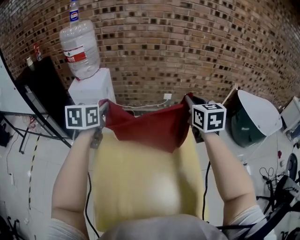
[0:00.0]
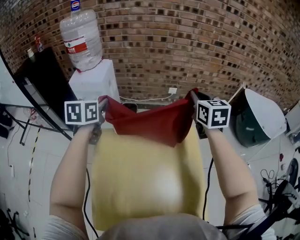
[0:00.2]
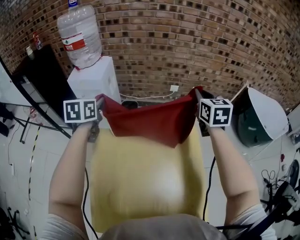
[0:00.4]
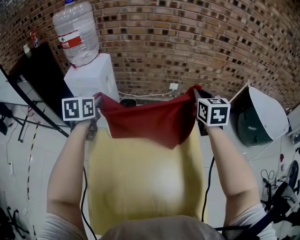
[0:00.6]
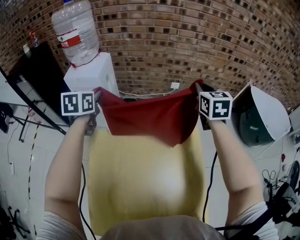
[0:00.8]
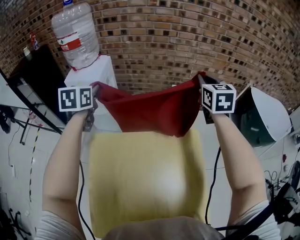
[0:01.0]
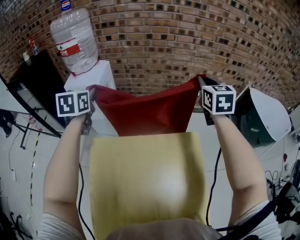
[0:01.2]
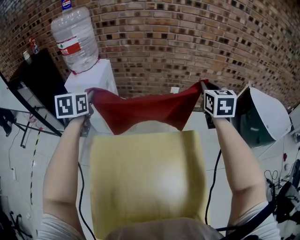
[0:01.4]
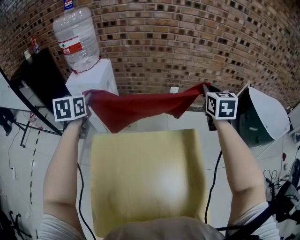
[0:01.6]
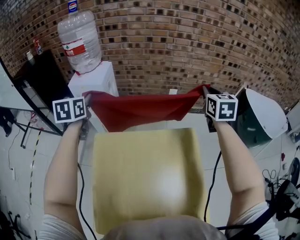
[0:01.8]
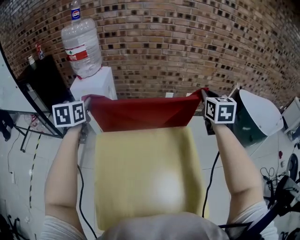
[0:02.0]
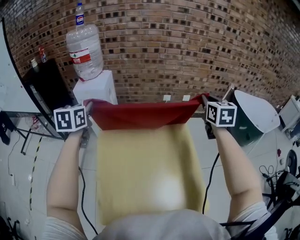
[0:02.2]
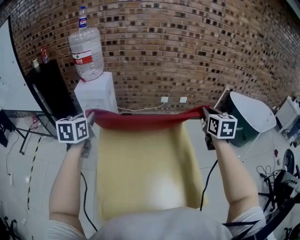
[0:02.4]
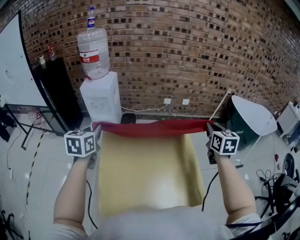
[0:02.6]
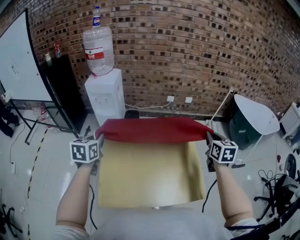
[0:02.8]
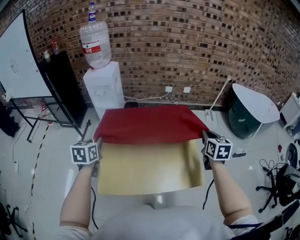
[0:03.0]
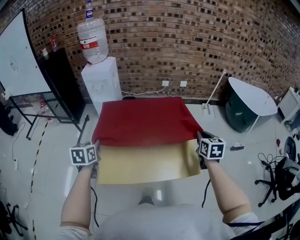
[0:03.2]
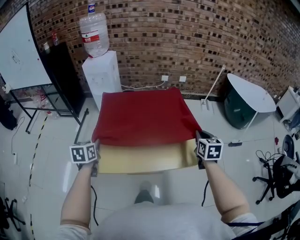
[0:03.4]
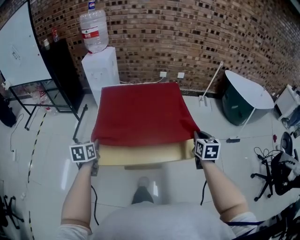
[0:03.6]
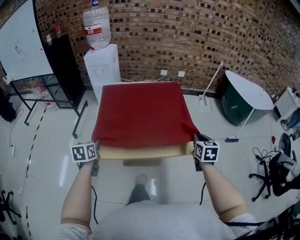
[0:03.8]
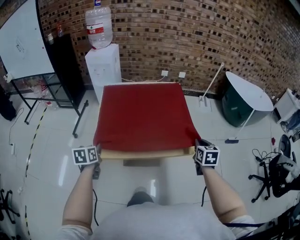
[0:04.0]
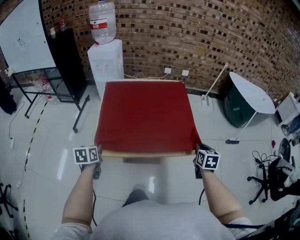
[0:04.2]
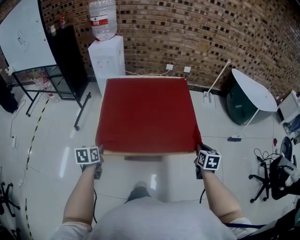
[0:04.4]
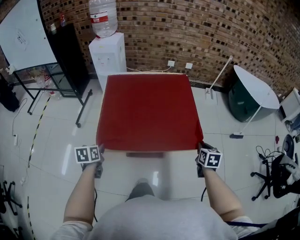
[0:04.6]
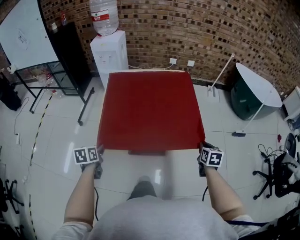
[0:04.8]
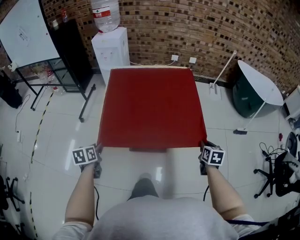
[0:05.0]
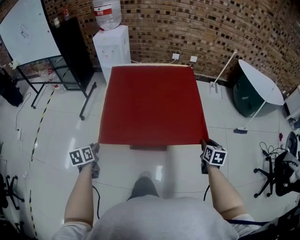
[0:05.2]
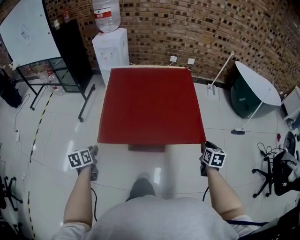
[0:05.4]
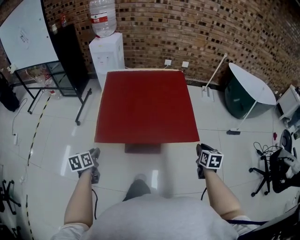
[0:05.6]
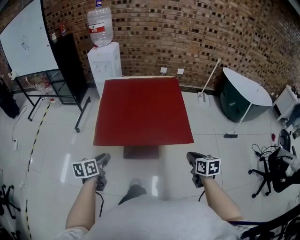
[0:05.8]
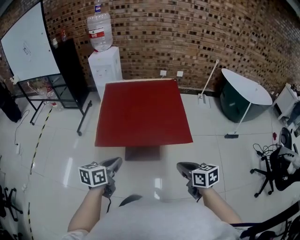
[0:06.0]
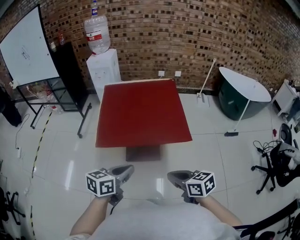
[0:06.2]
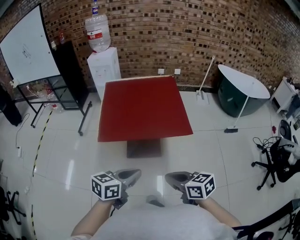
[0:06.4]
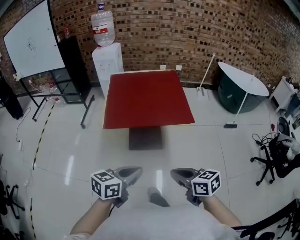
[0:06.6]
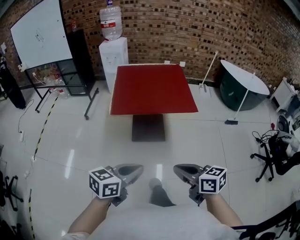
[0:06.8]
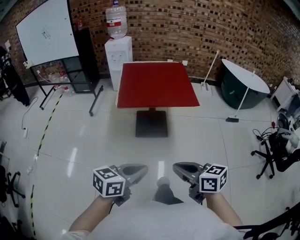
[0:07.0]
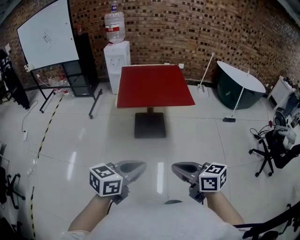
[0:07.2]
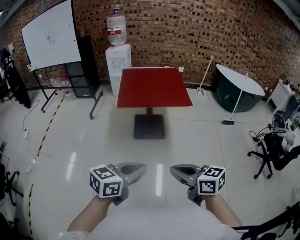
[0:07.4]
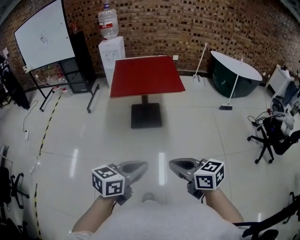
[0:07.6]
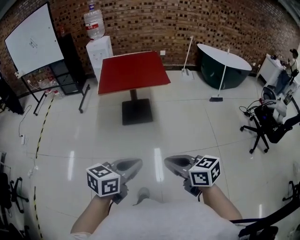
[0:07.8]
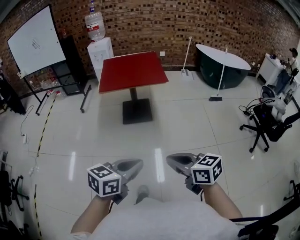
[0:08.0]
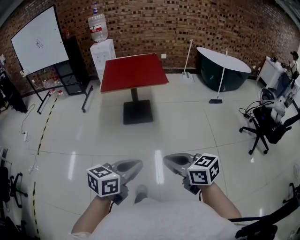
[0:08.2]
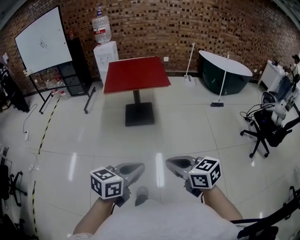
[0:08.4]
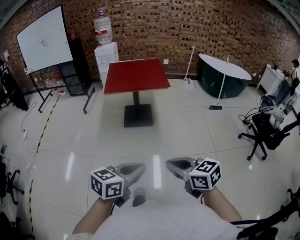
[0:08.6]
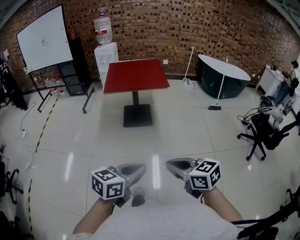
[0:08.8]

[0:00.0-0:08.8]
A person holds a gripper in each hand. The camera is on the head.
0:00.0 to 0:01.4: The right gripper moves forward, about 15 cm. Meanwhile the left gripper shifts approximately 15 cm forward and to the left.
0:01.4 to 0:03.0: The pair of grippers is taken backward, approximately 40 cm.
0:03.0 to 0:04.4: The two grippers go approximately 25 cm backward and downward.
0:04.4 to 0:05.8: The left gripper heads backward and to the right, covering roughly 15 cm, and opens, while the right gripper heads backward, covering about 15 cm.
0:05.8 to 0:07.4: The right gripper moves backward and to the left, roughly 50 cm, and rotates roughly 40 degrees. The left gripper is displaced backward by roughly 50 cm, rotates roughly 40 degrees, and closes.
0:07.4 to 0:08.8: The two grippers go roughly 20 cm backward and to the right.

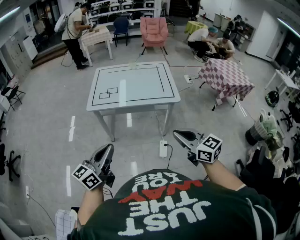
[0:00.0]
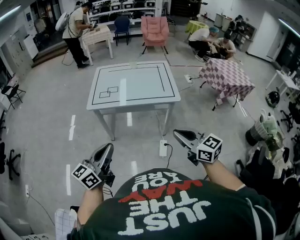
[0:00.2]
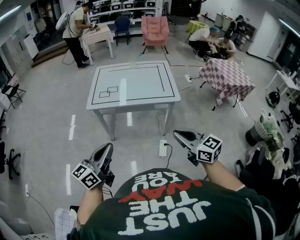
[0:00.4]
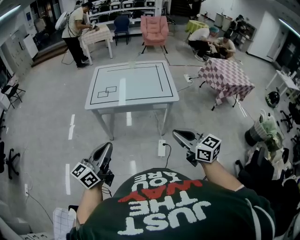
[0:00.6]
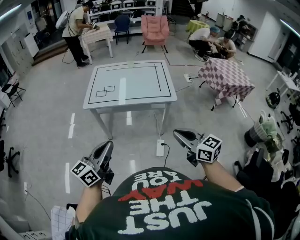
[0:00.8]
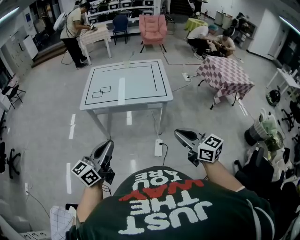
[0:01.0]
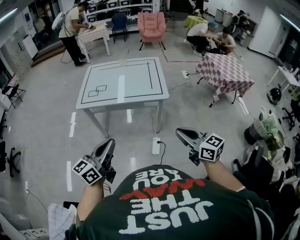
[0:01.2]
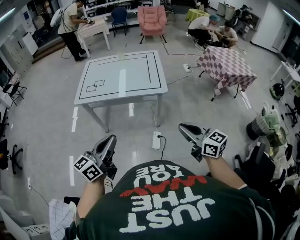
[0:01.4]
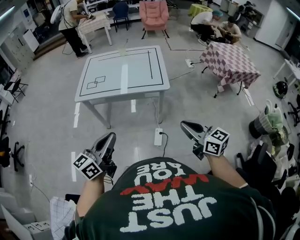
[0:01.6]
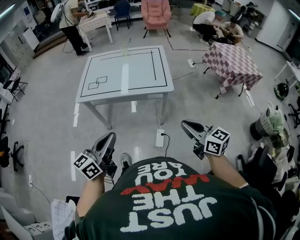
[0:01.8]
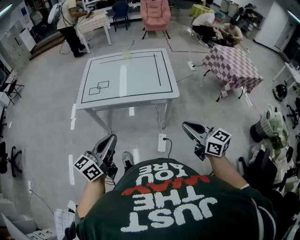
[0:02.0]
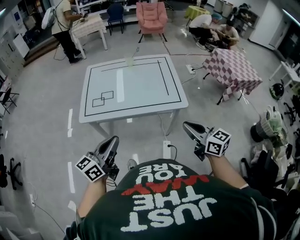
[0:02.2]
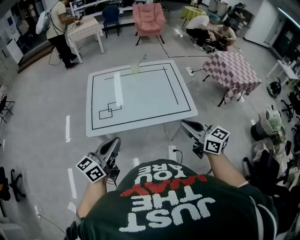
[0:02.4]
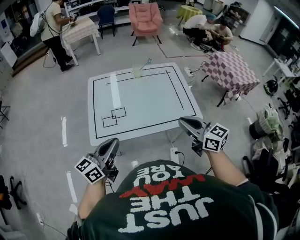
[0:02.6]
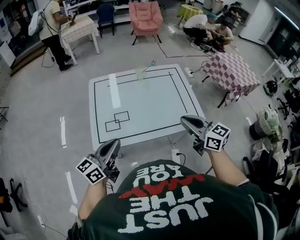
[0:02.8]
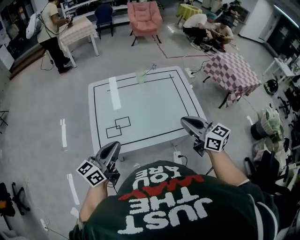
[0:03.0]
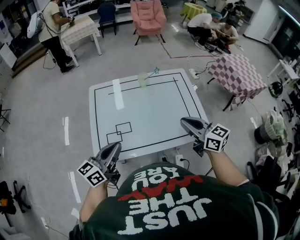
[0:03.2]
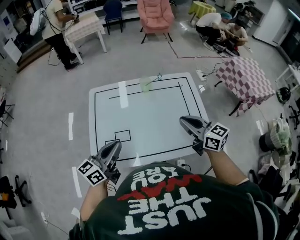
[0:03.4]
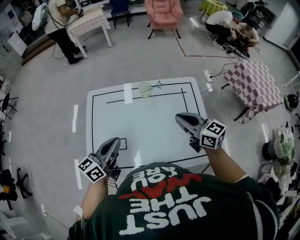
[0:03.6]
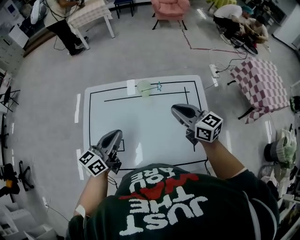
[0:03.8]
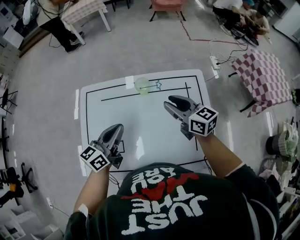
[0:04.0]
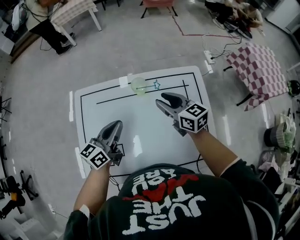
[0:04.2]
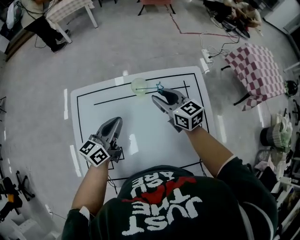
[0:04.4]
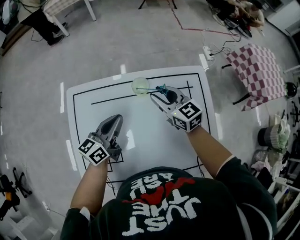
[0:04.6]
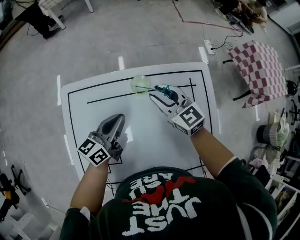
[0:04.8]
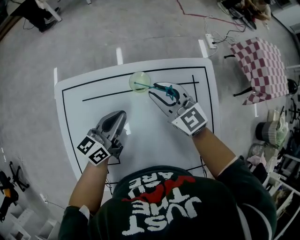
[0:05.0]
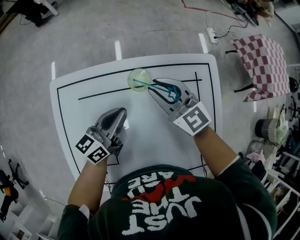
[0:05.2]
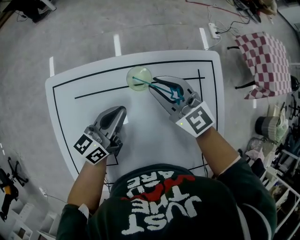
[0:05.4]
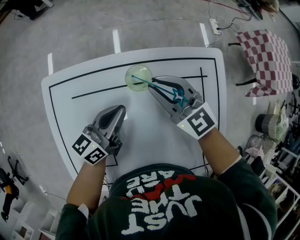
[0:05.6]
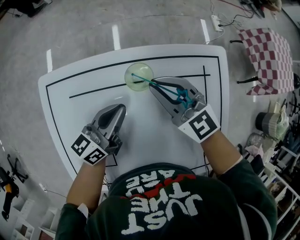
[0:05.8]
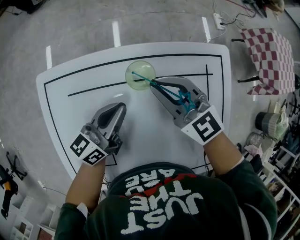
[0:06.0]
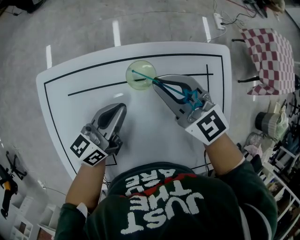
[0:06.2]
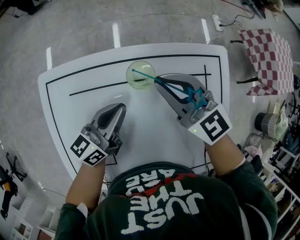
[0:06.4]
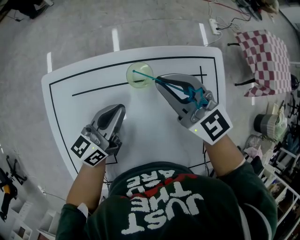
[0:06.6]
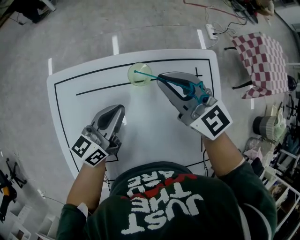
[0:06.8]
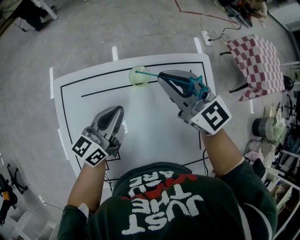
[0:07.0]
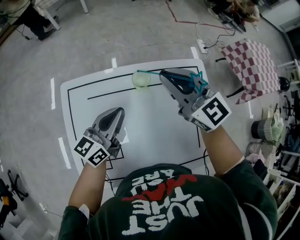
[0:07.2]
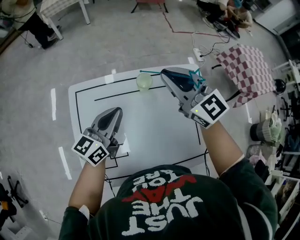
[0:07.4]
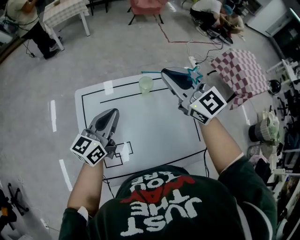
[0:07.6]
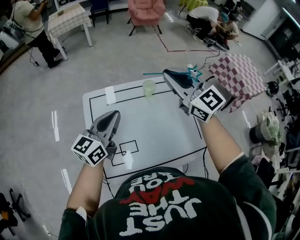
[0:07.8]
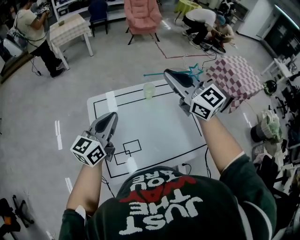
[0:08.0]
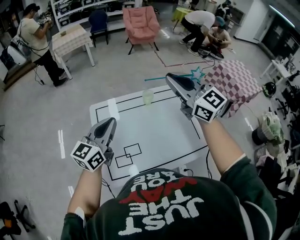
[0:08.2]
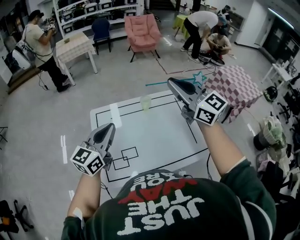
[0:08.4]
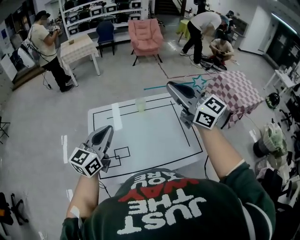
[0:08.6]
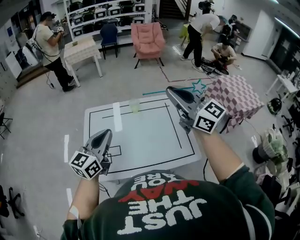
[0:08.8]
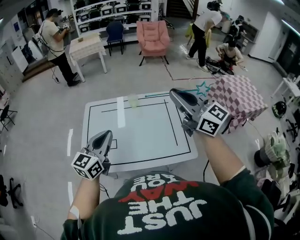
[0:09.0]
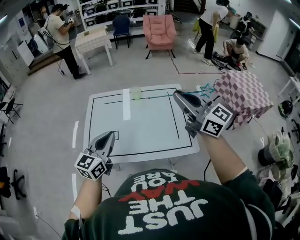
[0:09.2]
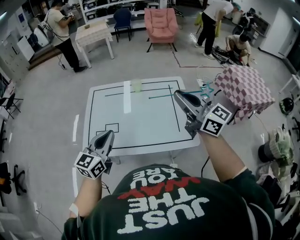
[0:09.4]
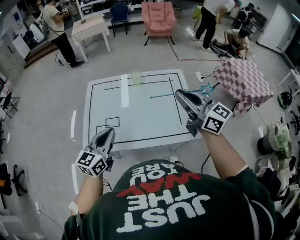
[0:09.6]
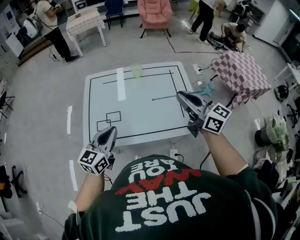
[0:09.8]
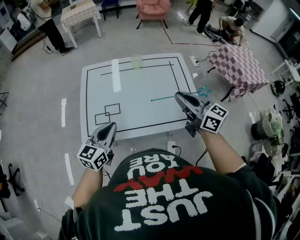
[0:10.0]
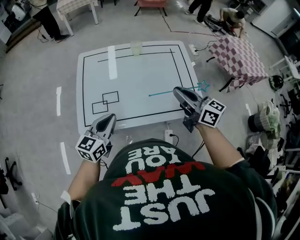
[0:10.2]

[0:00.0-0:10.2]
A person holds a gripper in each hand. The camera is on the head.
0:00.0 to 0:01.4: The two grippers go about 15 cm to the right.
0:01.4 to 0:03.0: The pair of grippers is taken forward and to the left, approximately 50 cm.
0:03.0 to 0:04.4: Both grippers move forward, roughly 35 cm. The right gripper opens.
0:04.4 to 0:05.8: The right gripper changes place by roughly 5 cm, changes its angle by about 20 degrees, and closes up. The left gripper moves downward and forward, about 10 cm.
0:05.8 to 0:07.2: The right gripper moves upward, some 15 cm, while the left gripper heads upward, covering approximately 10 cm.
0:07.2 to 0:08.8: Both grippers travel together backward and upward, some 30 cm. The left gripper changes its angle by some 20 degrees.
0:08.8 to 0:10.2: The grippers both shift downward and backward by about 20 cm. The right gripper turns by some 30 degrees.

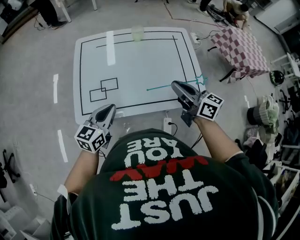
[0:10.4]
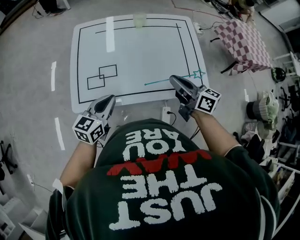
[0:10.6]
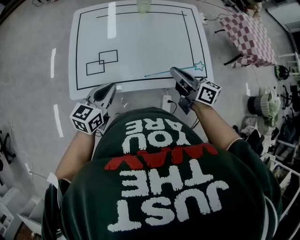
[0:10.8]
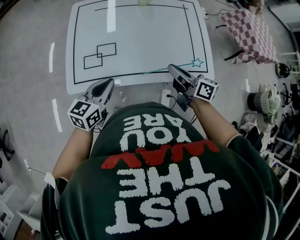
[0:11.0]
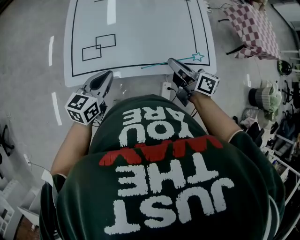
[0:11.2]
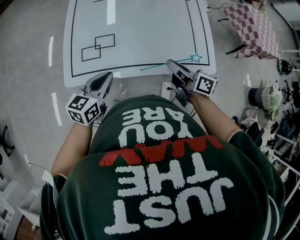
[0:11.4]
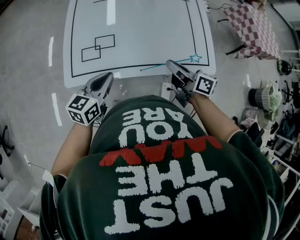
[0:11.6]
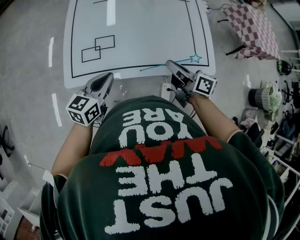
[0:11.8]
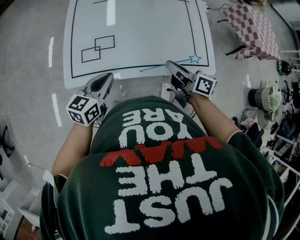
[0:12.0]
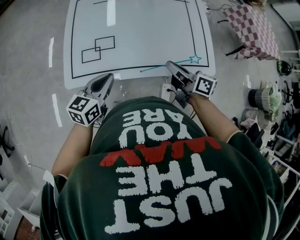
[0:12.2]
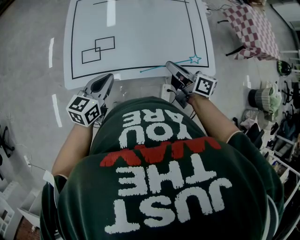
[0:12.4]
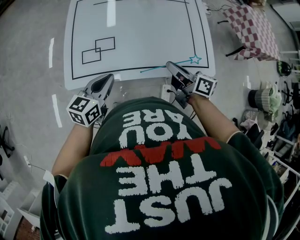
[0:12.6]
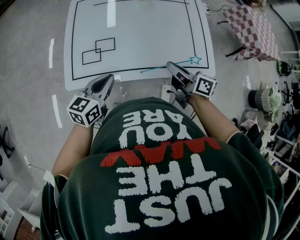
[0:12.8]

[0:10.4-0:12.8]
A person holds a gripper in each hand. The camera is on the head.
0:10.4 to 0:11.6: The left gripper travels downward by roughly 5 cm; the right gripper is displaced downward by approximately 10 cm, and turns by roughly 20 degrees.
0:11.6 to 0:12.8: Both grippers stay about where they are.

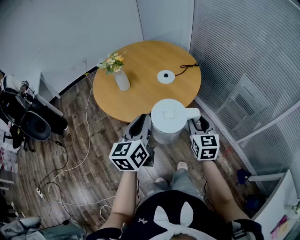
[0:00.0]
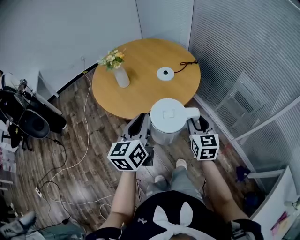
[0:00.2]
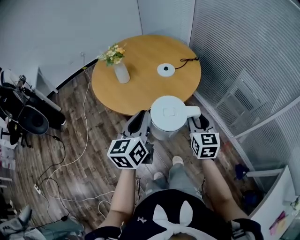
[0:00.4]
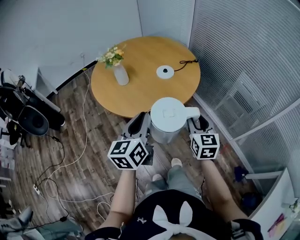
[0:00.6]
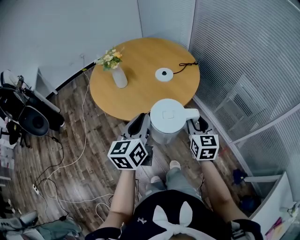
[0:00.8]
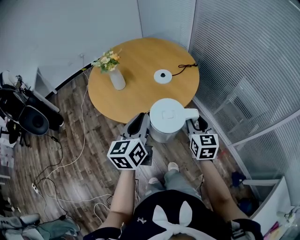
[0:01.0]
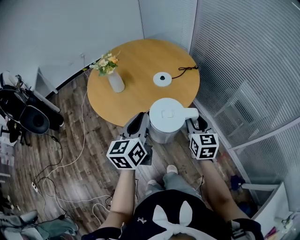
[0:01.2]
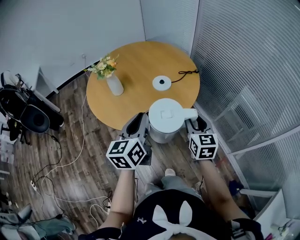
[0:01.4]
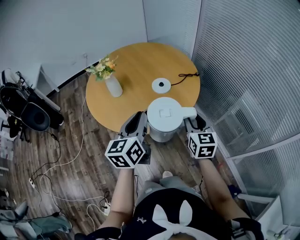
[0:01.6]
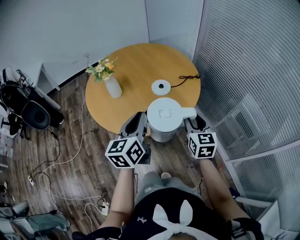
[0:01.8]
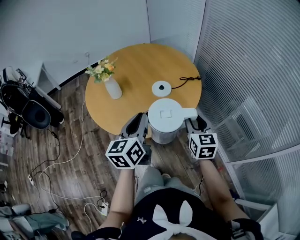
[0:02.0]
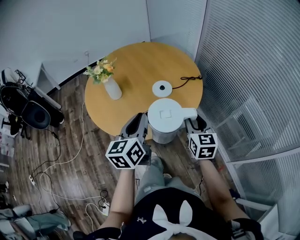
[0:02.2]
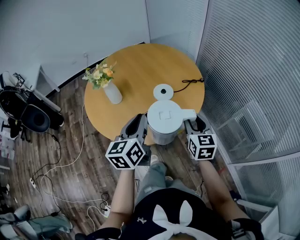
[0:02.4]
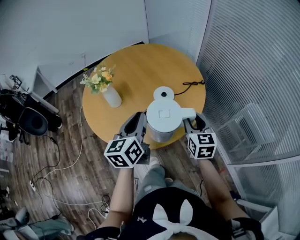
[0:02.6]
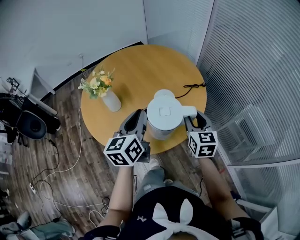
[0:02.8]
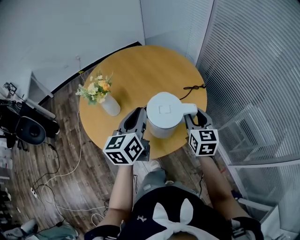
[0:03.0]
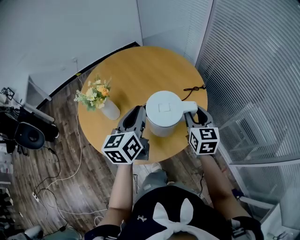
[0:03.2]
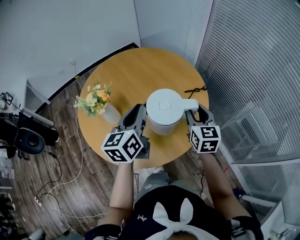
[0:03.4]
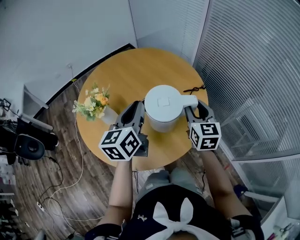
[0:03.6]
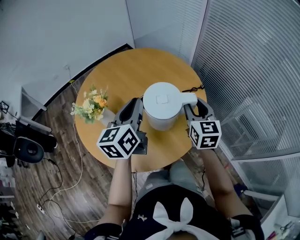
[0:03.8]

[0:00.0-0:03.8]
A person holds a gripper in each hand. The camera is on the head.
0:00.0 to 0:01.2: The grippers both shift forward by about 5 cm.
0:01.2 to 0:02.6: The two grippers go about 15 cm forward.
0:02.6 to 0:03.8: The two grippers go approximately 15 cm forward.
